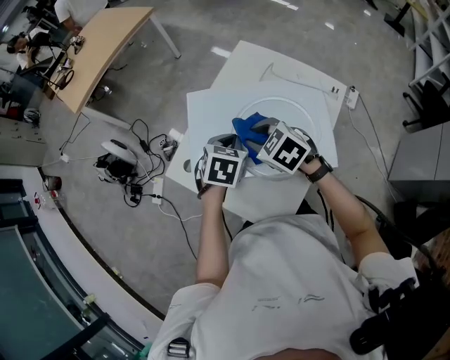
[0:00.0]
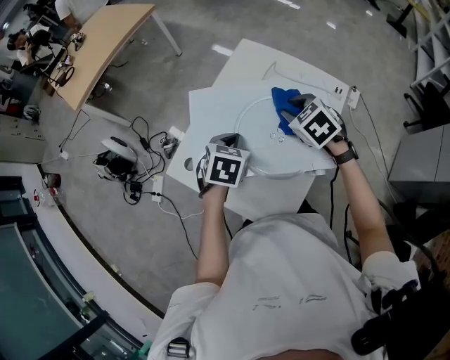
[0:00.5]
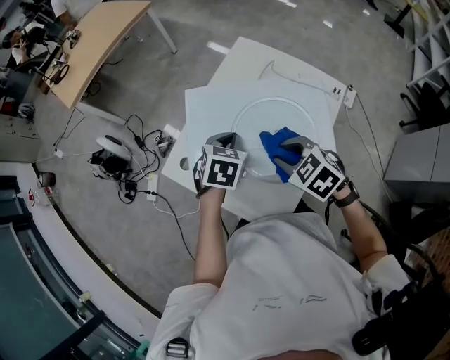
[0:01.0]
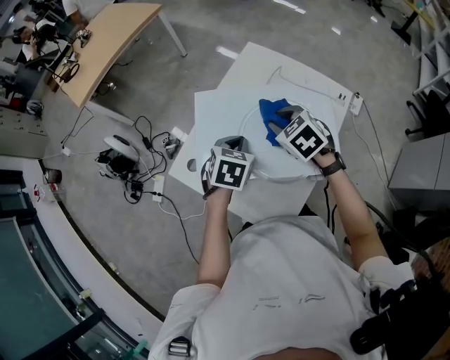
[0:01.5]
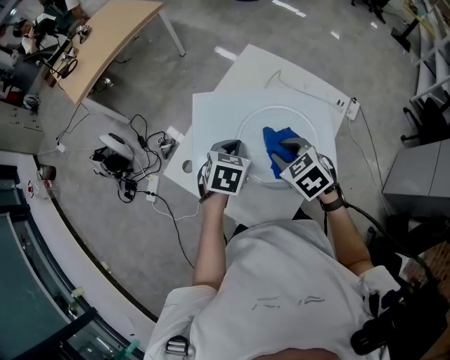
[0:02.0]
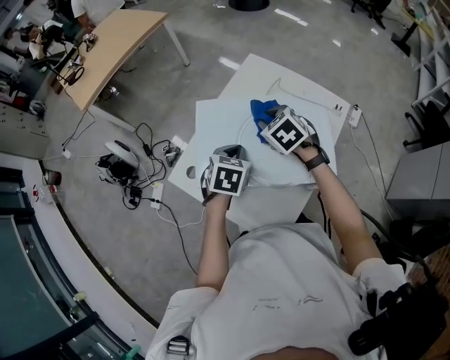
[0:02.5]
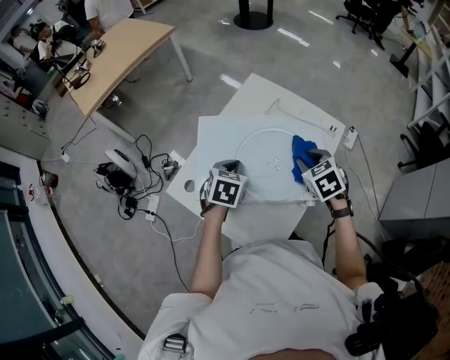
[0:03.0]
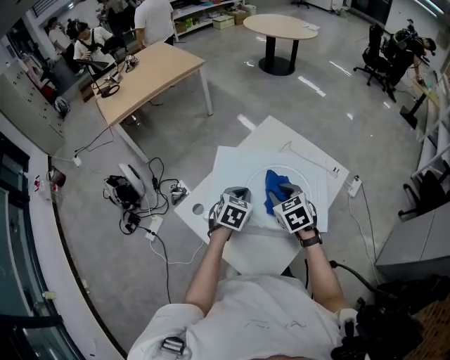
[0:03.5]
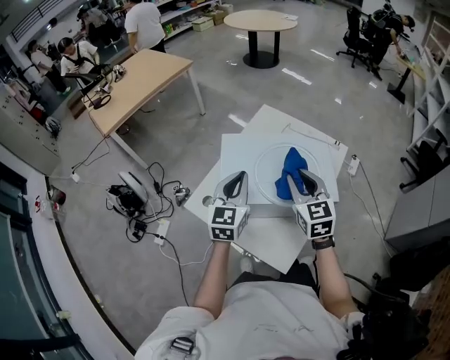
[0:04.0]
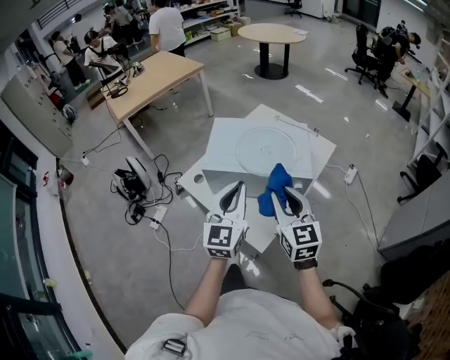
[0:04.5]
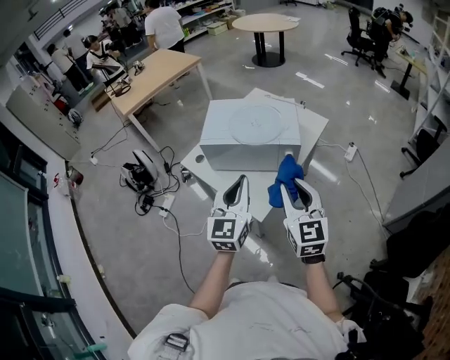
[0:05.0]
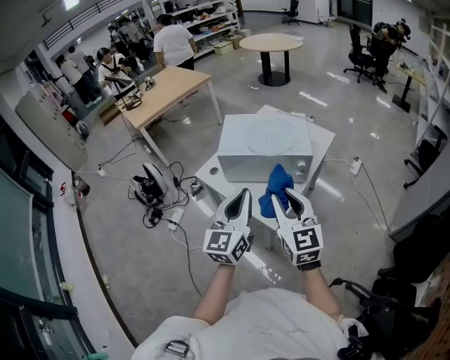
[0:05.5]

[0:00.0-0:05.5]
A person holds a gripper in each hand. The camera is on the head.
0:00.0 to 0:02.0: The right gripper moves forward and backward over about 10 cm, changing direction 3 times.
0:02.0 to 0:03.5: The right gripper reaches about 10 cm to the right, then returns.
0:03.5 to 0:05.5: The two grippers go roughly 40 cm backward and upward. The left gripper angles its fingers upward, by about 50 degrees. The right gripper points its fingers roughly 40 degrees further upward.

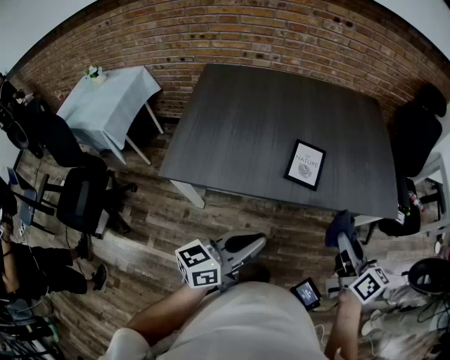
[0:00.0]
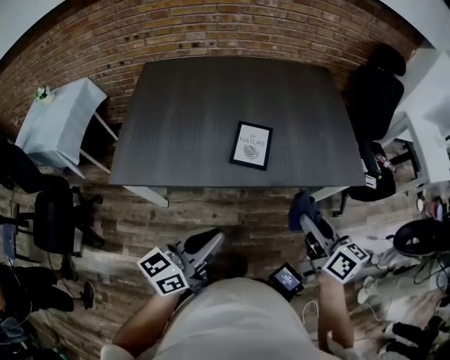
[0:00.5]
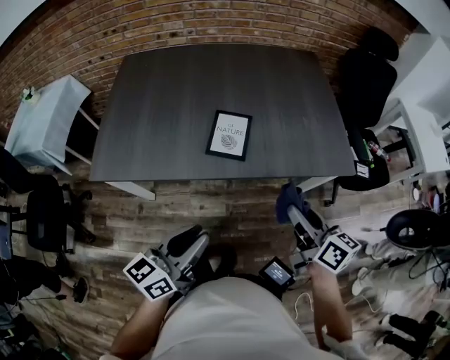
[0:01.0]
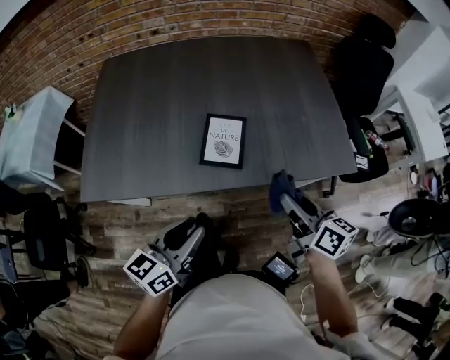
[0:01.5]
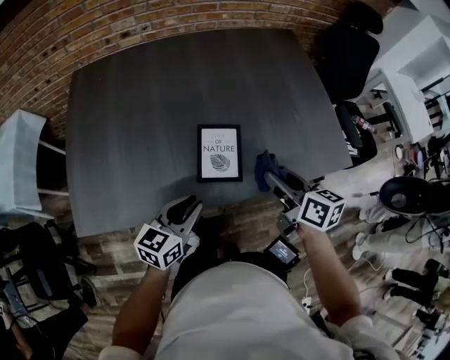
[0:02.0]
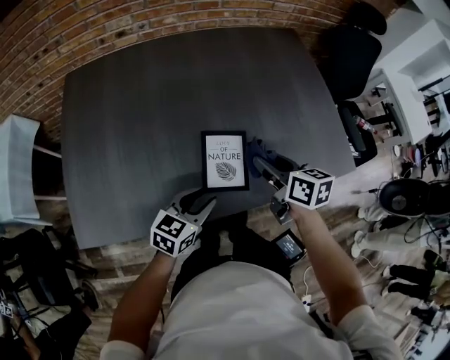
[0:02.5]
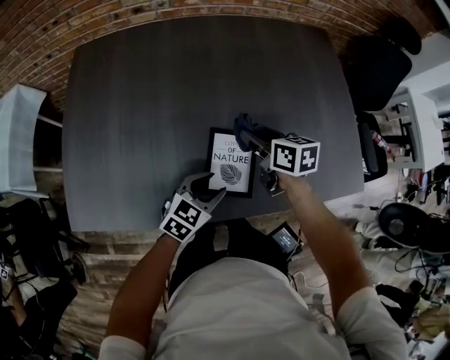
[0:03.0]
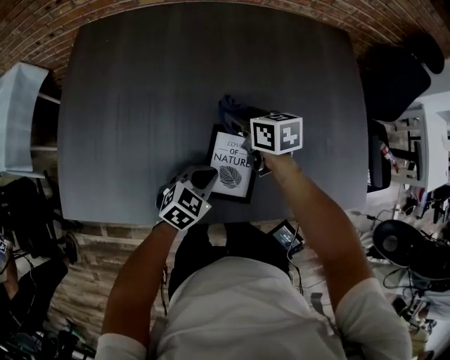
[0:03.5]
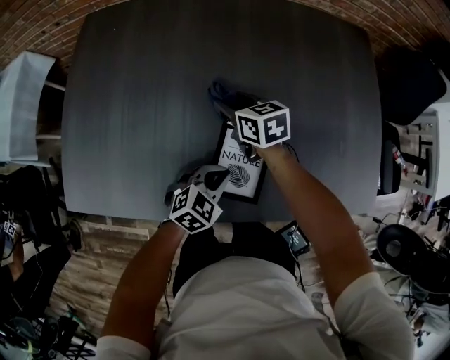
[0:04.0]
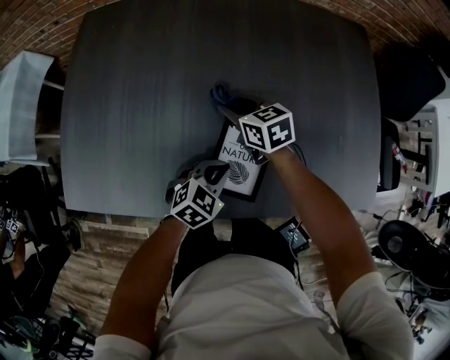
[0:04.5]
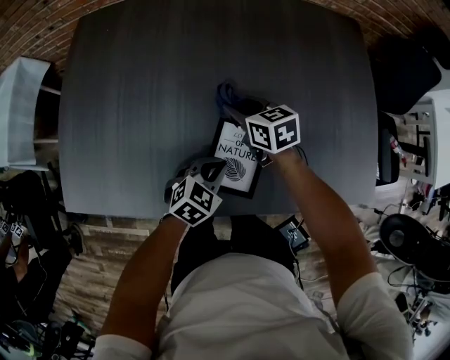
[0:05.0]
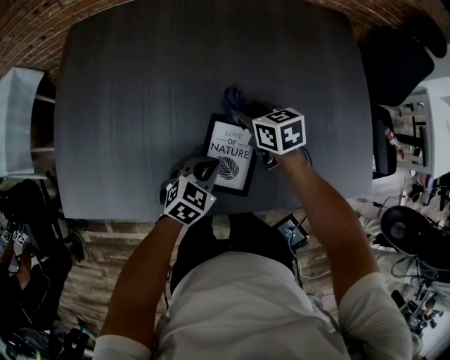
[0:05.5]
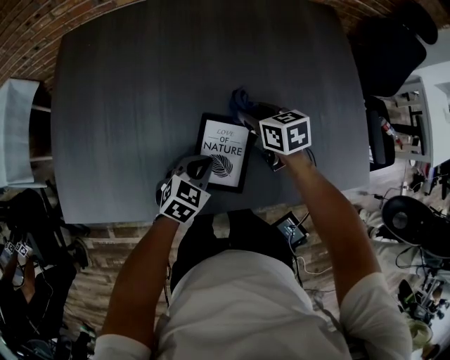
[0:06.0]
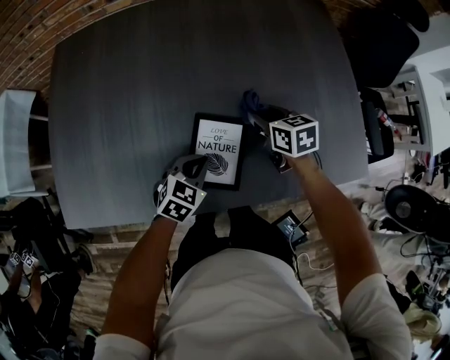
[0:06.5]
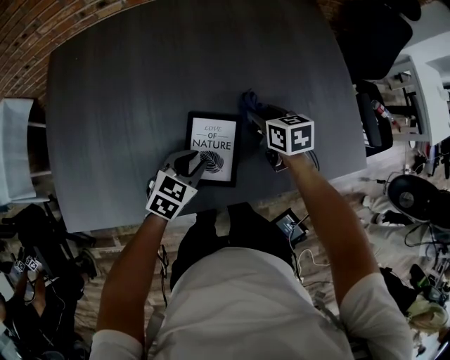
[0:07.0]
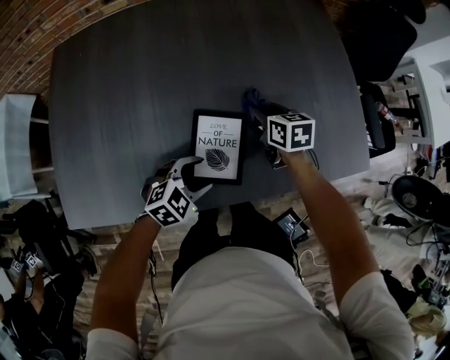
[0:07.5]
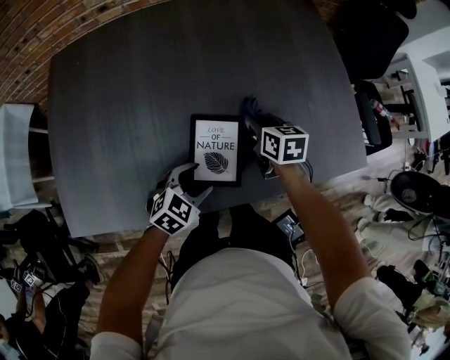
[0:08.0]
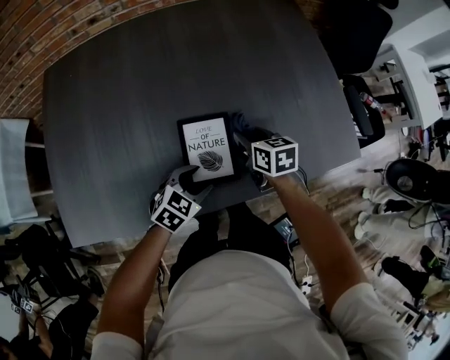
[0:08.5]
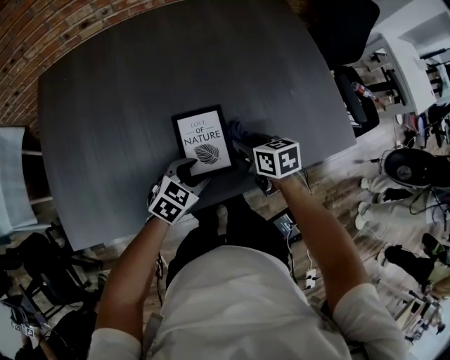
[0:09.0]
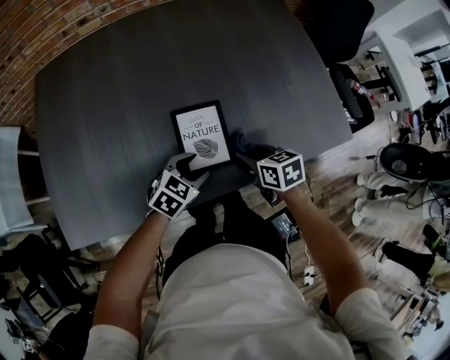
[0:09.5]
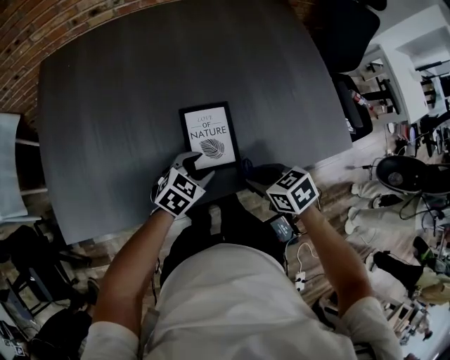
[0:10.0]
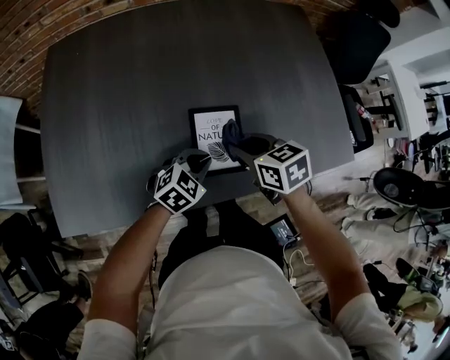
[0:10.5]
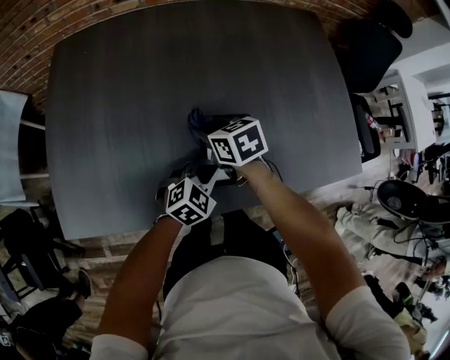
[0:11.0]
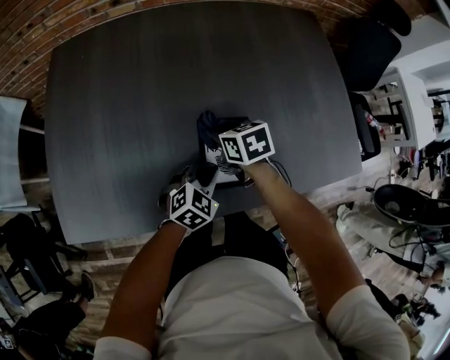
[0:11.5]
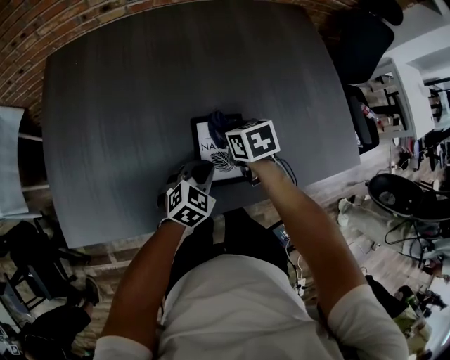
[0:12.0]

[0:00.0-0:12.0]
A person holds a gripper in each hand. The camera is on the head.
0:00.0 to 0:02.0: Both grippers move forward and downward, approximately 25 cm. The left gripper swivels some 20 degrees.
0:02.0 to 0:04.0: The right gripper shifts roughly 35 cm forward, to the left and downward, and turns by some 30 degrees; the left gripper goes roughly 20 cm forward, downward and to the right, and swivels approximately 30 degrees.
0:04.0 to 0:06.0: The right gripper goes some 15 cm to the right.
0:06.0 to 0:08.0: The right gripper shifts approximately 5 cm to the right, and swivels about 20 degrees. The left gripper moves approximately 5 cm, and opens its fingers.
0:08.0 to 0:10.0: The right gripper travels backward by about 20 cm, and rotates some 30 degrees.
0:10.0 to 0:12.0: The left gripper closes up. Meanwhile the right gripper shifts roughly 20 cm forward and to the left.

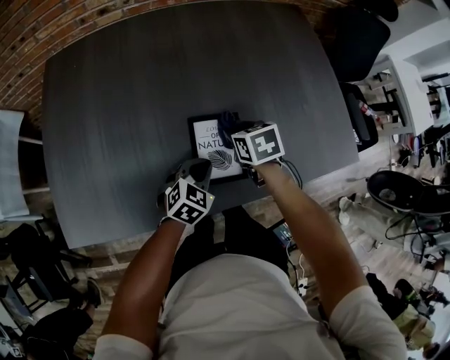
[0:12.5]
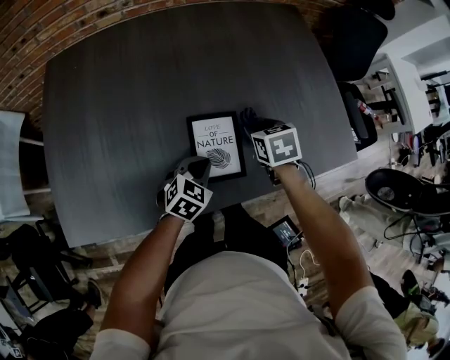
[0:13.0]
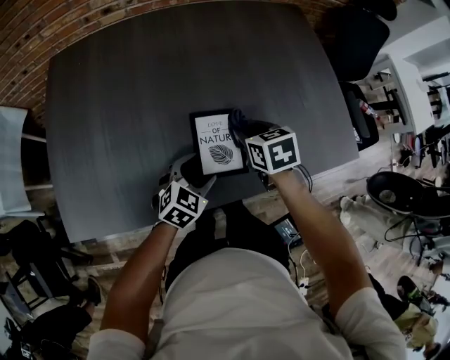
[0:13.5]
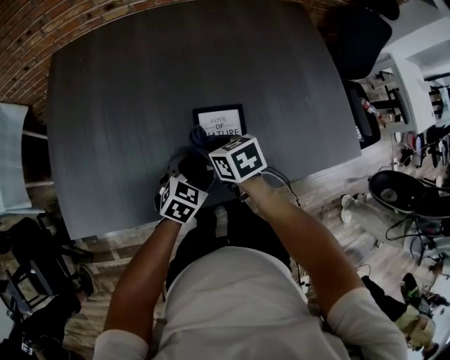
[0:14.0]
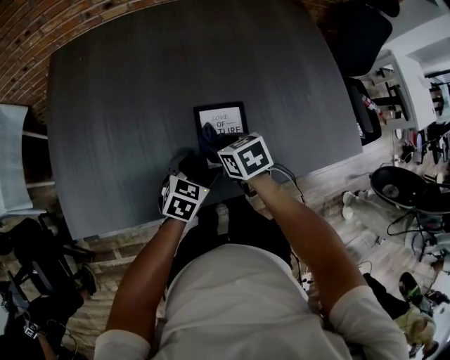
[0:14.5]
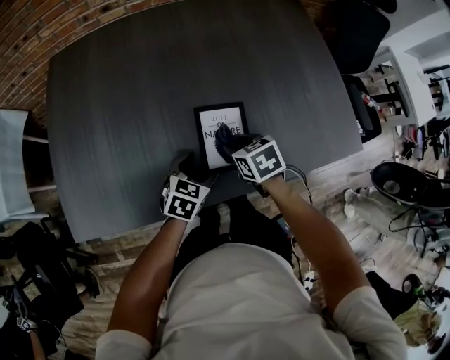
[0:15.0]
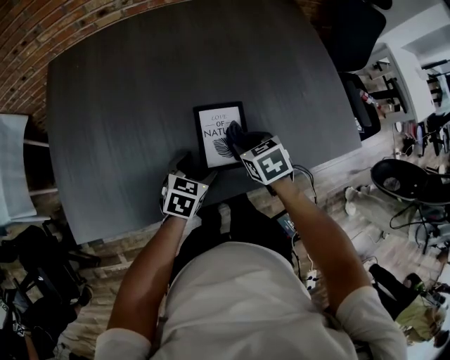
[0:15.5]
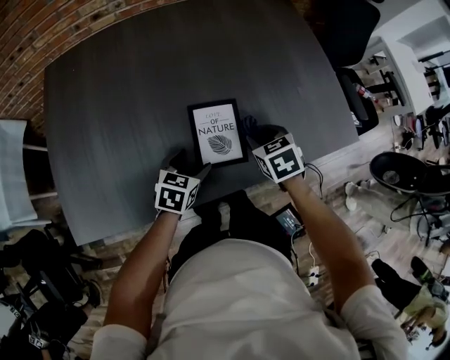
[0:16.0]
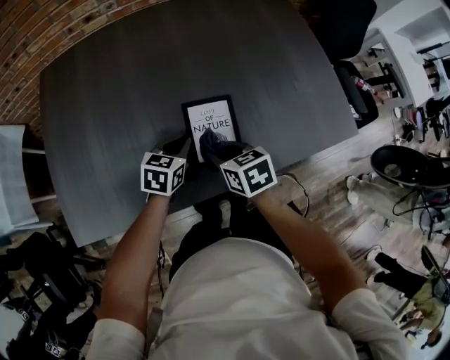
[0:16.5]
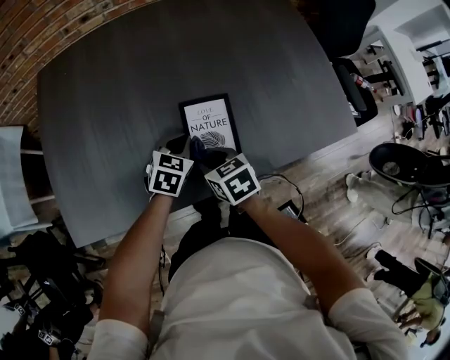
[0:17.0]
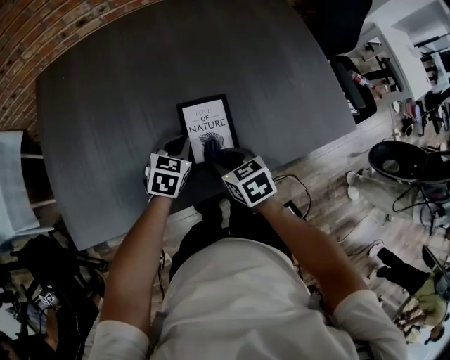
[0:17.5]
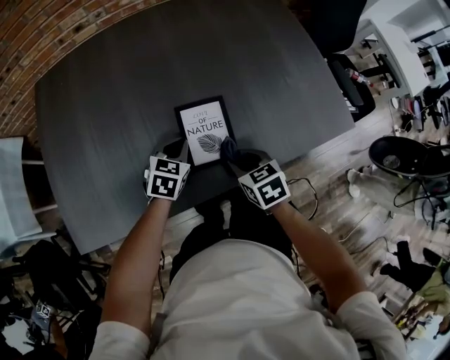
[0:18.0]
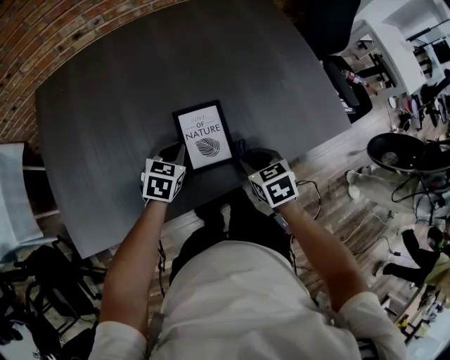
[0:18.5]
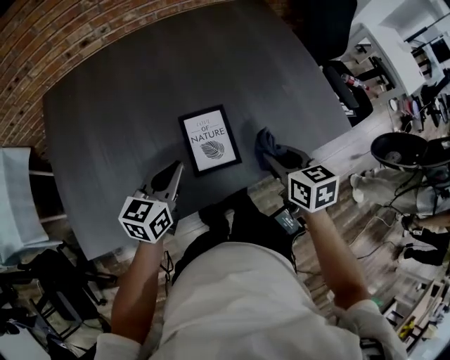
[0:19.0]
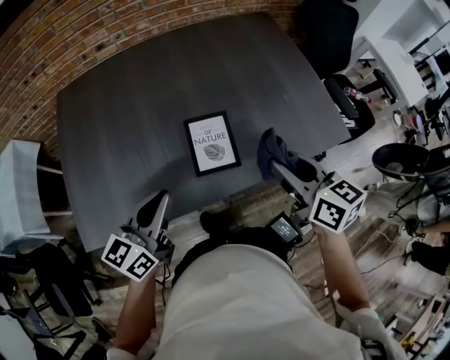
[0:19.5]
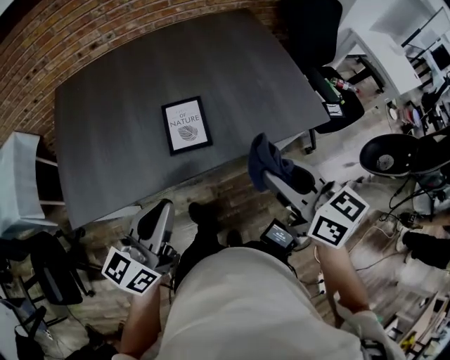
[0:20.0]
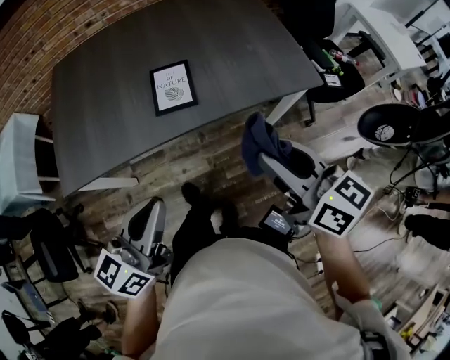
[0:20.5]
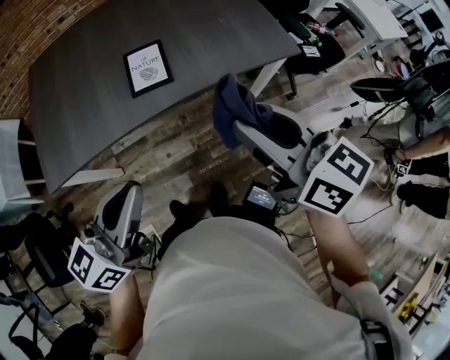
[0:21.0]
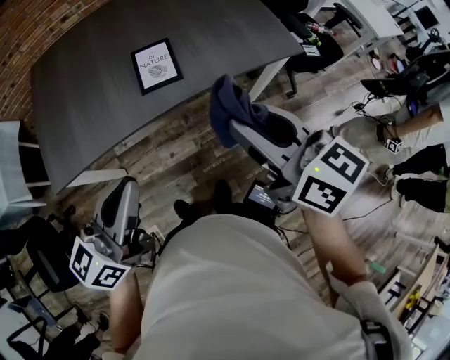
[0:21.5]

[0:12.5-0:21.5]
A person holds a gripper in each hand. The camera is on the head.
0:12.5 to 0:14.5: The left gripper opens its fingers; the right gripper is displaced backward and to the left by about 10 cm.
0:14.5 to 0:17.0: The left gripper travels forward by approximately 5 cm, and closes. The right gripper shifts approximately 5 cm backward, and reaches about 15 cm to the right, then returns.
0:17.0 to 0:19.5: The left gripper travels upward and backward by roughly 25 cm, and angles its fingers upward, by some 40 degrees. Meanwhile the right gripper shifts about 25 cm upward and to the right, and rotates roughly 30 degrees.
0:19.5 to 0:21.5: Both grippers move backward and upward, about 25 cm.
